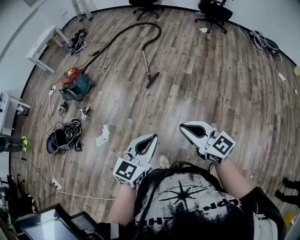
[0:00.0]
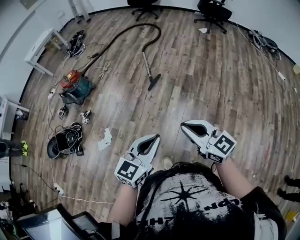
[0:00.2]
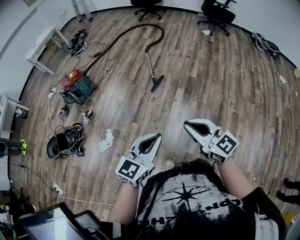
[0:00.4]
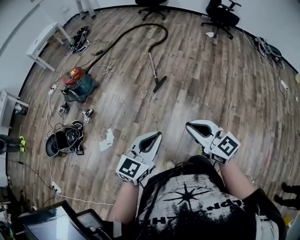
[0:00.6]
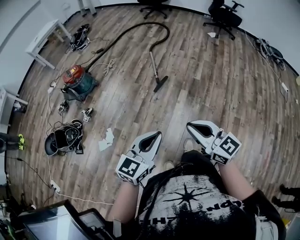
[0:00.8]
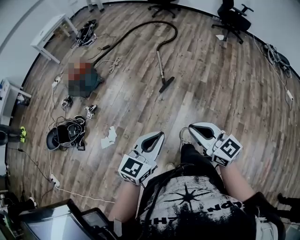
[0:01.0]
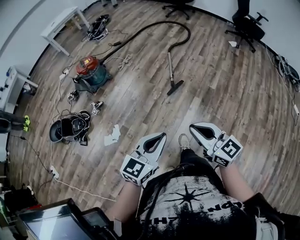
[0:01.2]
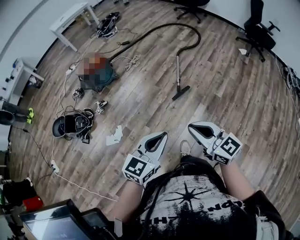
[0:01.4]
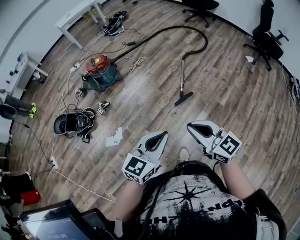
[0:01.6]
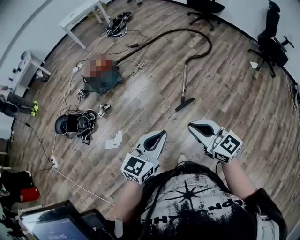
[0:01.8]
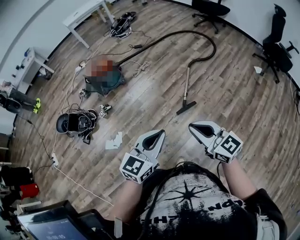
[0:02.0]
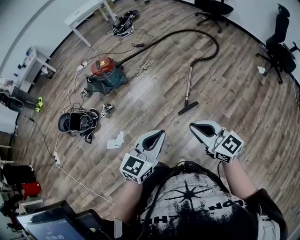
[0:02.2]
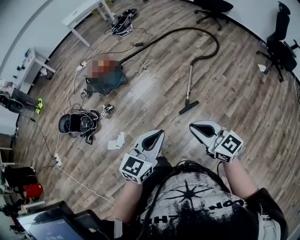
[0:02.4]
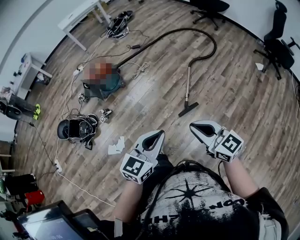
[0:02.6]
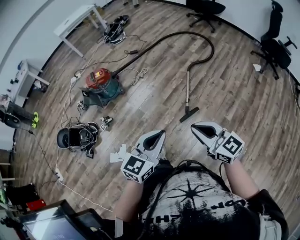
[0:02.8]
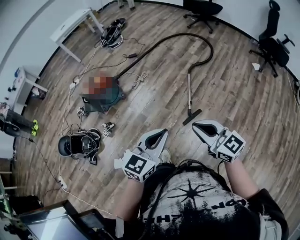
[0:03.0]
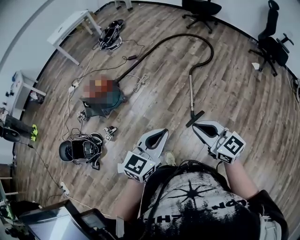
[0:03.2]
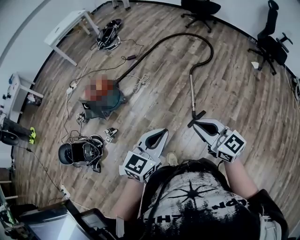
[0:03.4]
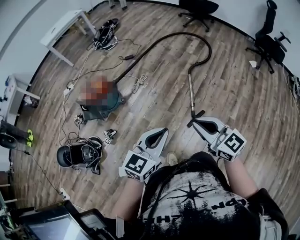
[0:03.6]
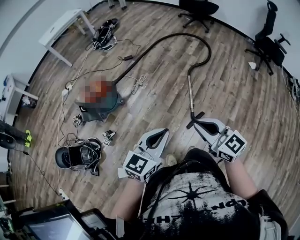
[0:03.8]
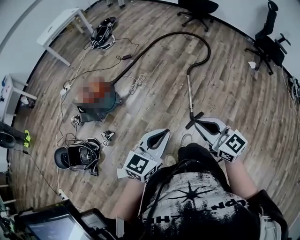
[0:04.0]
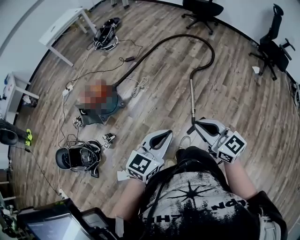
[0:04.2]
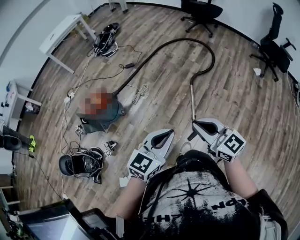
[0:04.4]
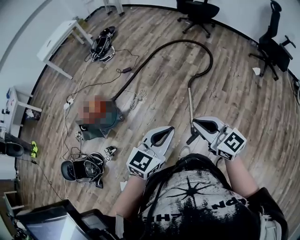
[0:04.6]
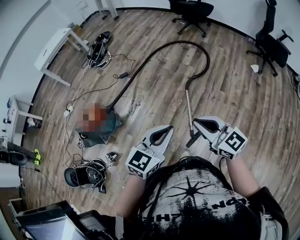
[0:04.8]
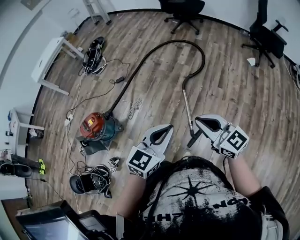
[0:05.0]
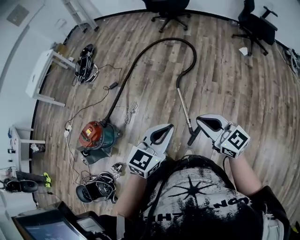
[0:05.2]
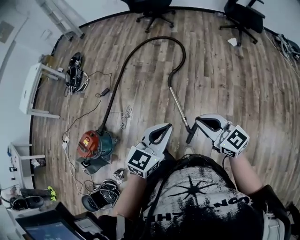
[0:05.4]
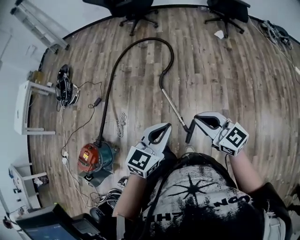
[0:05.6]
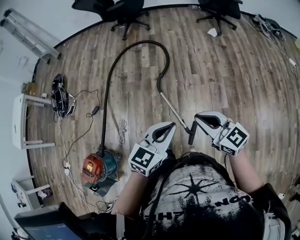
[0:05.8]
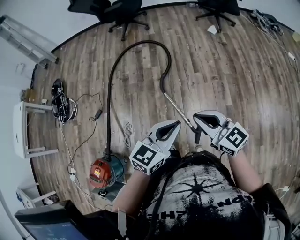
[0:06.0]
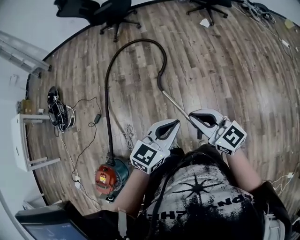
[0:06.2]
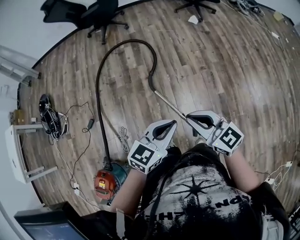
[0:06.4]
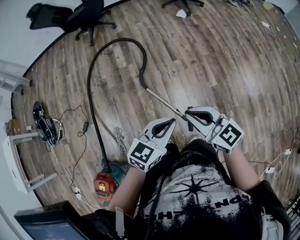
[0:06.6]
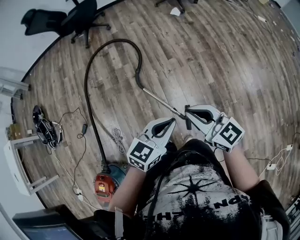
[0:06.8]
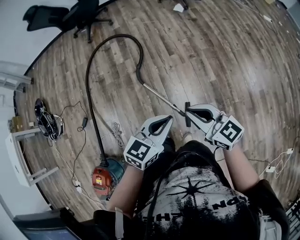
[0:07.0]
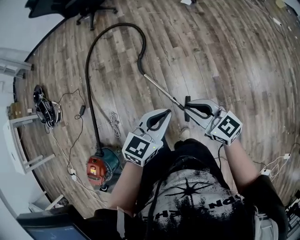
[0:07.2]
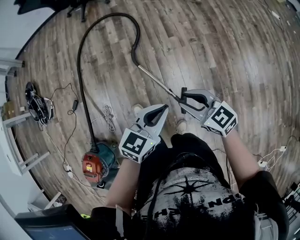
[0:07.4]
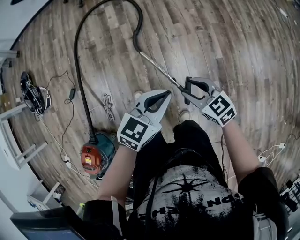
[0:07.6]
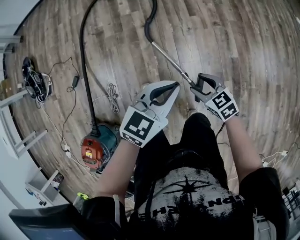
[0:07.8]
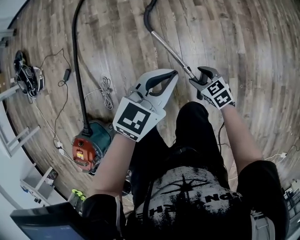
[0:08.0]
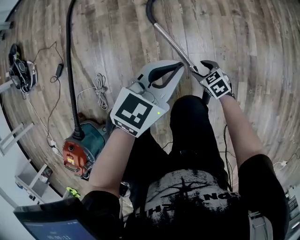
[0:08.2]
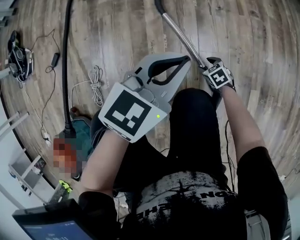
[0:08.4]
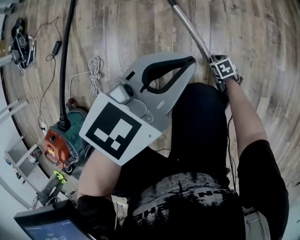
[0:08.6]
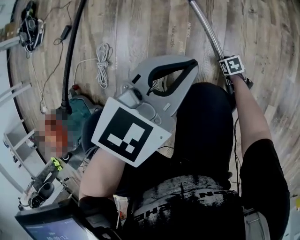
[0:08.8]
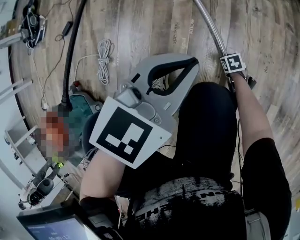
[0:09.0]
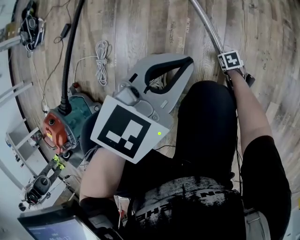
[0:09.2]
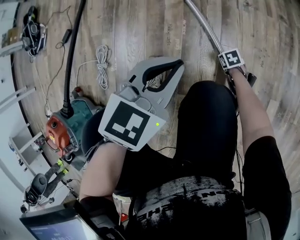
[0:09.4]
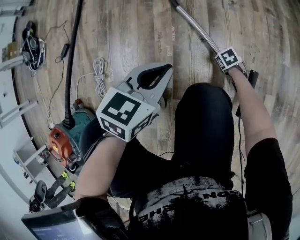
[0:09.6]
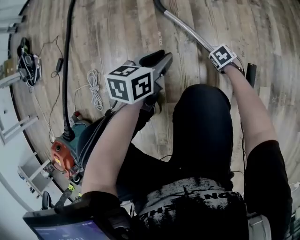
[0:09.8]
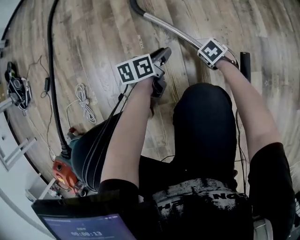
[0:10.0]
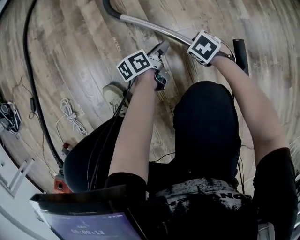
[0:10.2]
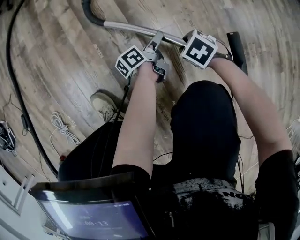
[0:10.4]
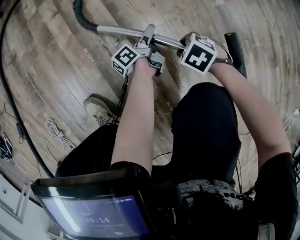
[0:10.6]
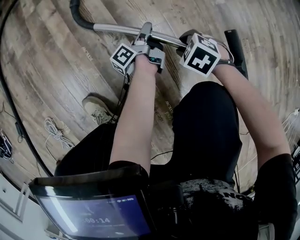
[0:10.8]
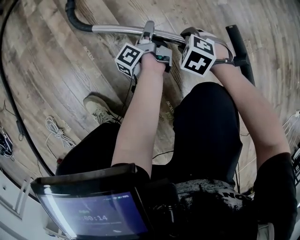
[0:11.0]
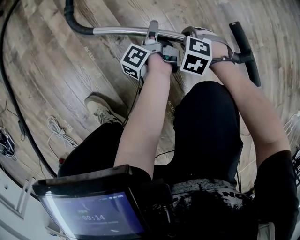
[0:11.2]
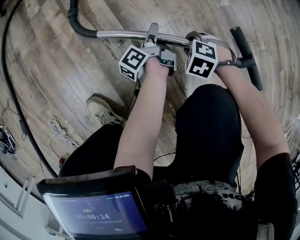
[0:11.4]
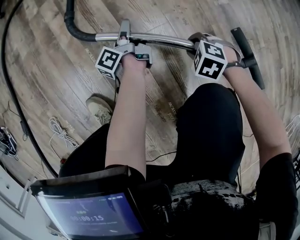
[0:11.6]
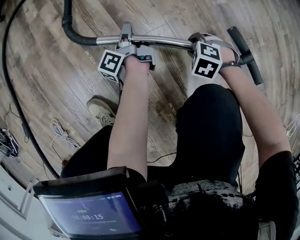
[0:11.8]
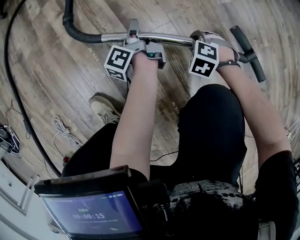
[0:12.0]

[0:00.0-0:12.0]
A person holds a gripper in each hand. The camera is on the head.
0:00.0 to 0:01.6: The two grippers go approximately 30 cm forward.
0:01.6 to 0:03.0: Both grippers travel together forward, roughly 25 cm.
0:03.0 to 0:04.4: The two grippers go roughly 20 cm forward.
0:04.4 to 0:06.0: The left gripper changes place by about 30 cm, and turns by about 40 degrees. The right gripper changes place by about 30 cm, and swivels about 30 degrees.
0:06.0 to 0:07.6: The left gripper heads downward, covering about 15 cm; the right gripper goes some 25 cm downward, turns by about 30 degrees, and opens its fingers.
0:07.6 to 0:09.0: The right gripper moves downward, some 70 cm, and tips its fingers downward by about 40 degrees. Meanwhile the left gripper shifts approximately 35 cm downward.
0:09.0 to 0:10.4: The right gripper goes about 15 cm upward, while the left gripper moves downward, some 35 cm, twists roughly 80 degrees counterclockwise, seen from behind, and opens up.
0:10.4 to 0:12.0: The right gripper moves some 5 cm, and turns by approximately 30 degrees. The left gripper moves roughly 10 cm, changes its angle by approximately 30 degrees, and closes.

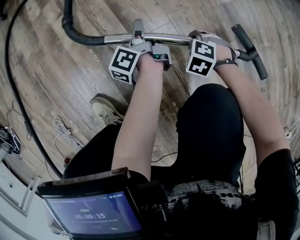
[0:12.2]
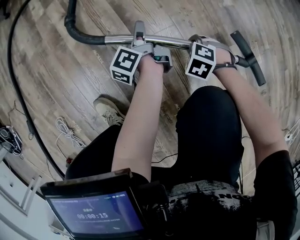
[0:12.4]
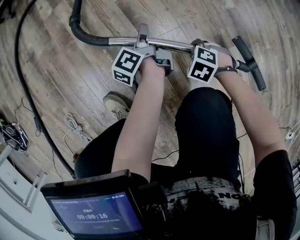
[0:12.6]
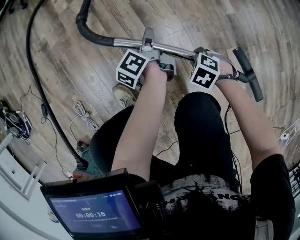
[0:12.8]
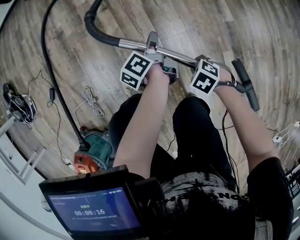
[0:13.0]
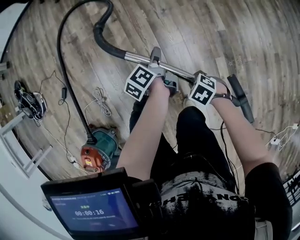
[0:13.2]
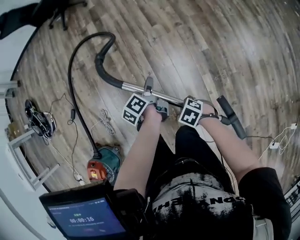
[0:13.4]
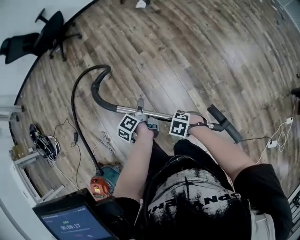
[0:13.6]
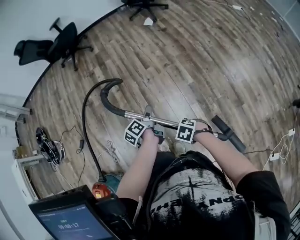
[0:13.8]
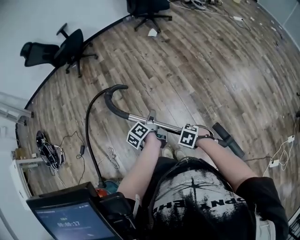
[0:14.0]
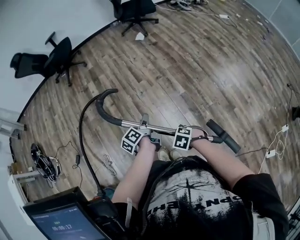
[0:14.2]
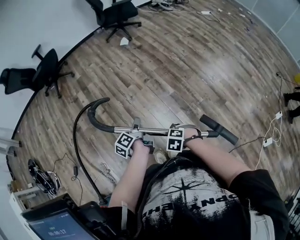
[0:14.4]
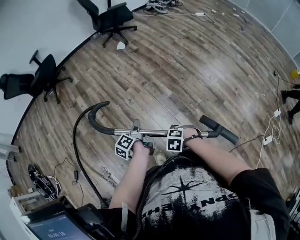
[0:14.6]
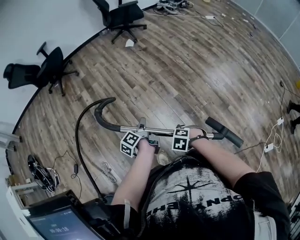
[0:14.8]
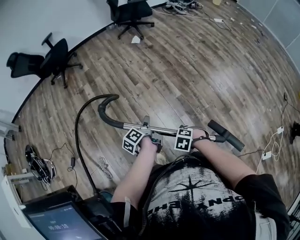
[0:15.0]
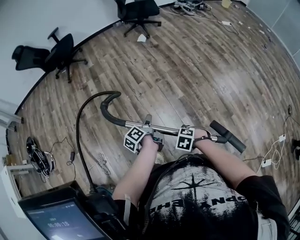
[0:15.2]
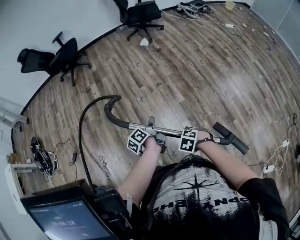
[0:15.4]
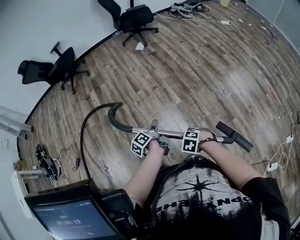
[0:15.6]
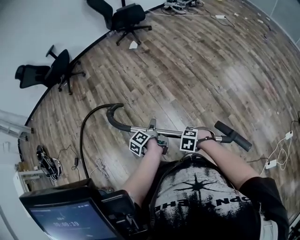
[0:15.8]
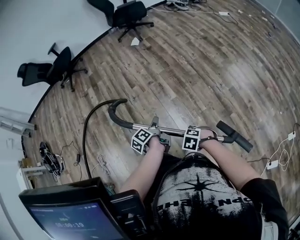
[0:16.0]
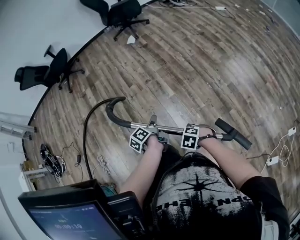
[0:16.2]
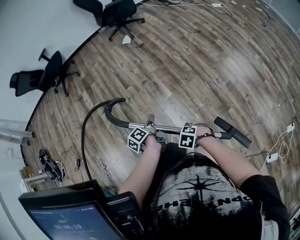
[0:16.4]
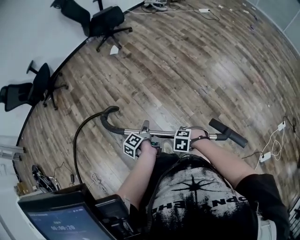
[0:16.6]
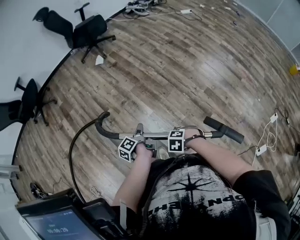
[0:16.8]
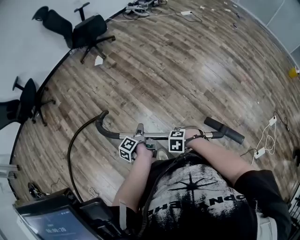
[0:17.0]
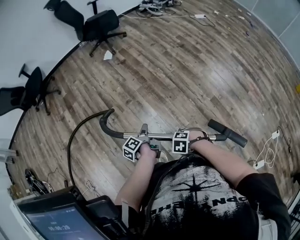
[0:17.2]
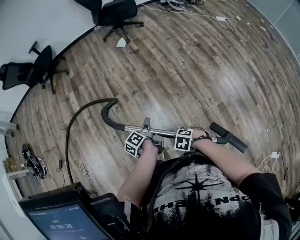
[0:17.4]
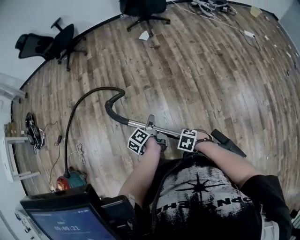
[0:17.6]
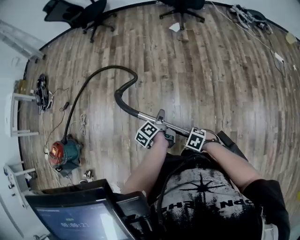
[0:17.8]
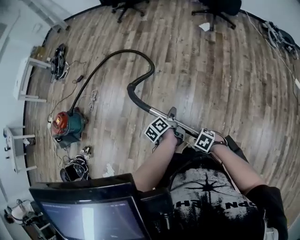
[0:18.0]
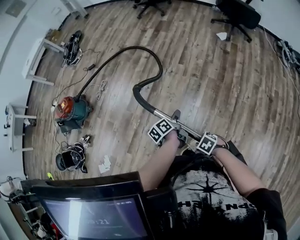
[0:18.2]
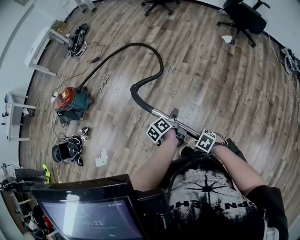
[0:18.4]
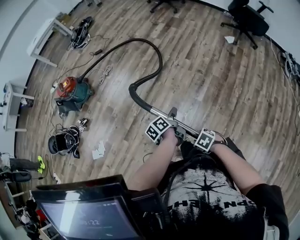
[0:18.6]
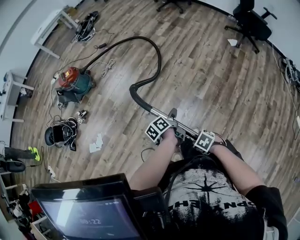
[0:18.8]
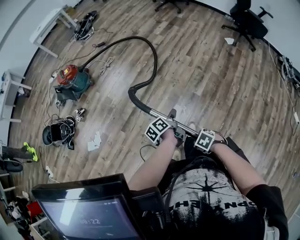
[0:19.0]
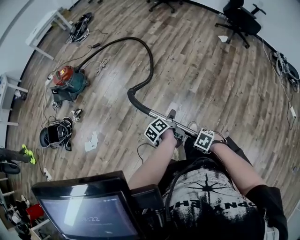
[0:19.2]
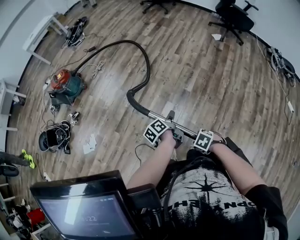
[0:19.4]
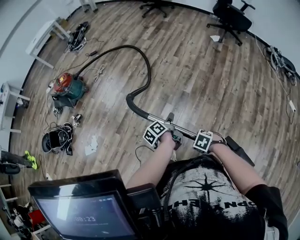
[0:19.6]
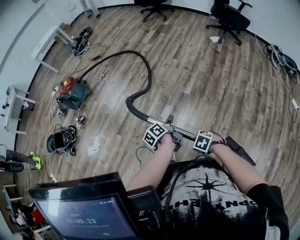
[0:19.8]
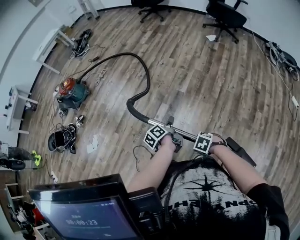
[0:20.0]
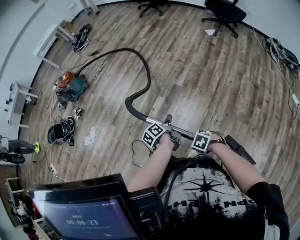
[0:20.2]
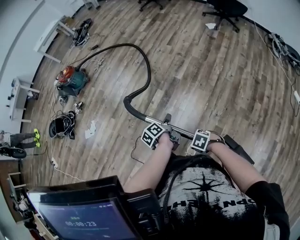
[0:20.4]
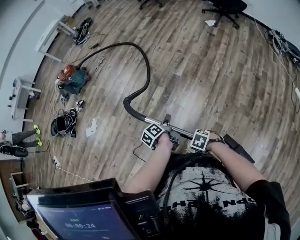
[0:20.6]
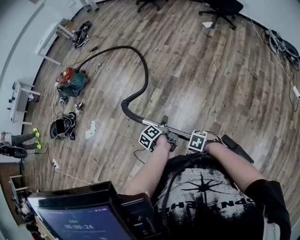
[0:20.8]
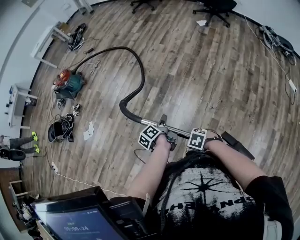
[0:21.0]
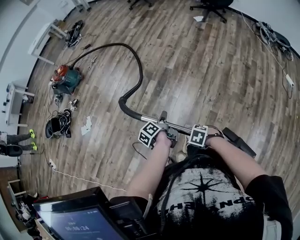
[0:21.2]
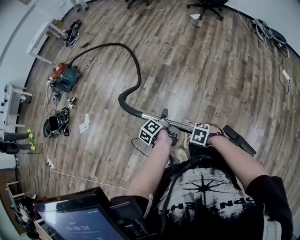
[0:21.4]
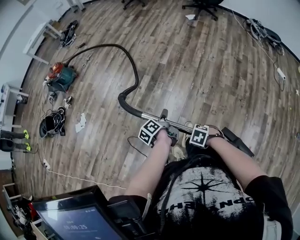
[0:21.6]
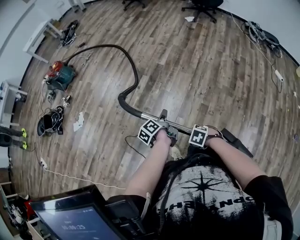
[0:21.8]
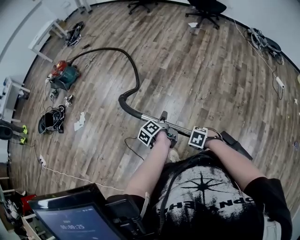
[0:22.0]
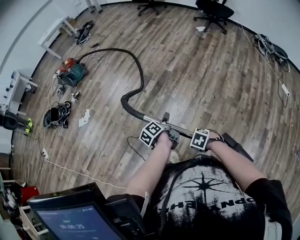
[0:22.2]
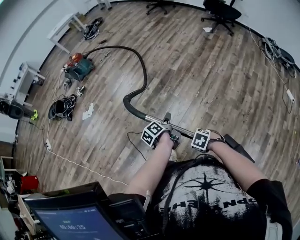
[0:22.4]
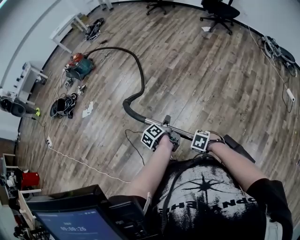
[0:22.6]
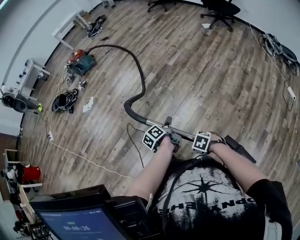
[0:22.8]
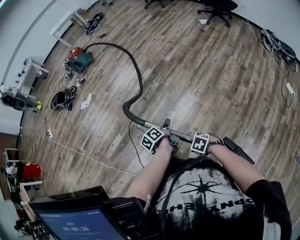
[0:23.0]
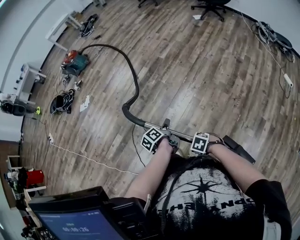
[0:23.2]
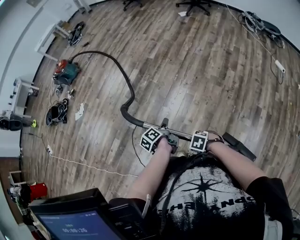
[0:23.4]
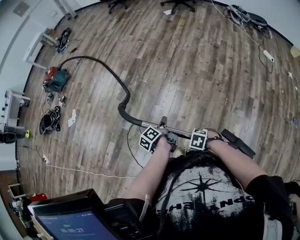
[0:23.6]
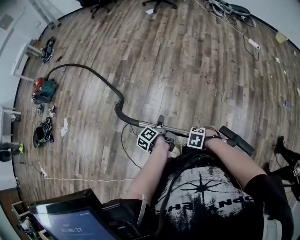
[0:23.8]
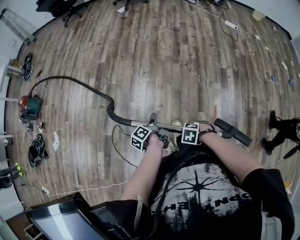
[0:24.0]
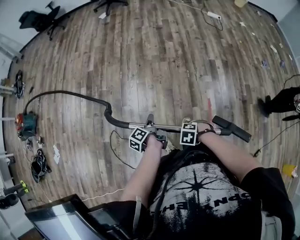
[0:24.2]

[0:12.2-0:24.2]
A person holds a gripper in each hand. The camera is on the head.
0:12.2 to 0:13.8: The grippers both shift upward by approximately 60 cm. The right gripper changes its angle by about 30 degrees.
0:13.8 to 0:15.2: There are only small adjustments of the grippers.
0:15.2 to 0:16.6: The left gripper moves some 30 cm; the right gripper shifts by roughly 25 cm.
0:16.6 to 0:18.2: The right gripper shifts by roughly 20 cm, and rotates some 40 degrees, while the left gripper ends up some 10 cm from where it was, and turns by roughly 40 degrees.
0:18.2 to 0:19.8: The right gripper moves some 30 cm. The left gripper ends up approximately 30 cm from where it was.
0:19.8 to 0:21.2: The right gripper moves some 30 cm. Meanwhile the left gripper moves some 25 cm.
0:21.2 to 0:22.6: The right gripper moves some 25 cm. The left gripper moves approximately 25 cm.
0:22.6 to 0:24.2: The left gripper changes place by some 30 cm, and rotates some 30 degrees; the right gripper moves some 30 cm, and swivels about 20 degrees.
